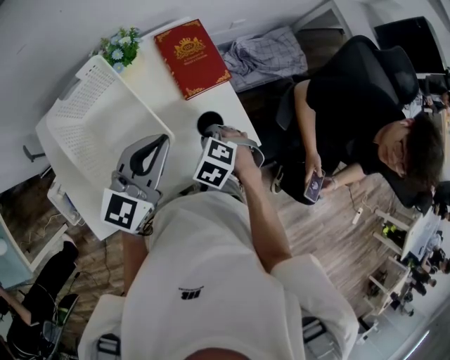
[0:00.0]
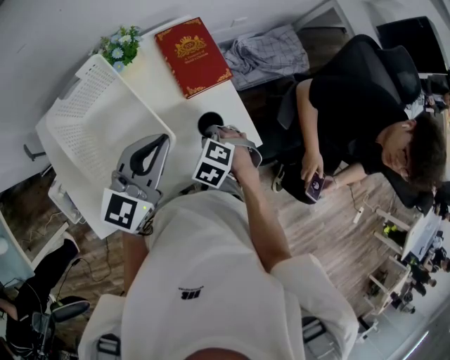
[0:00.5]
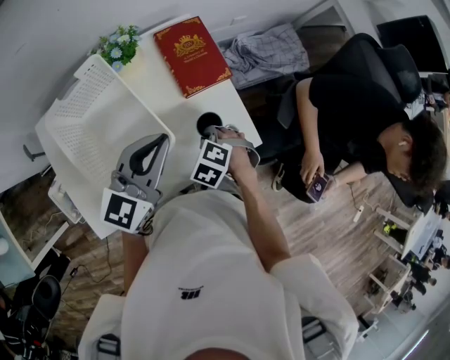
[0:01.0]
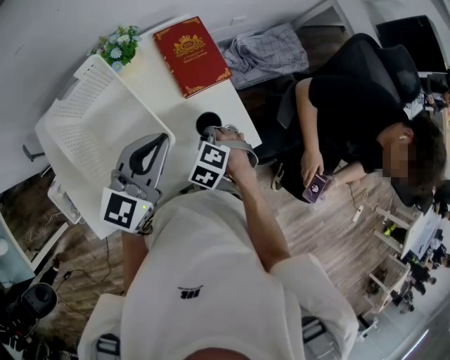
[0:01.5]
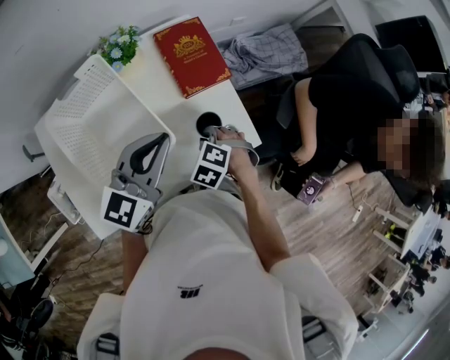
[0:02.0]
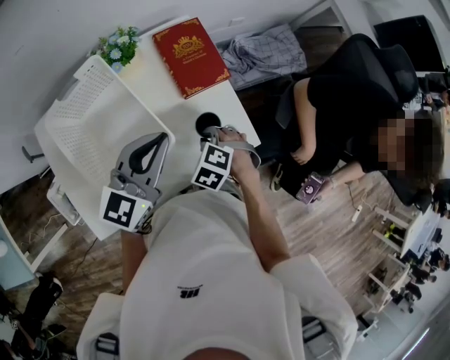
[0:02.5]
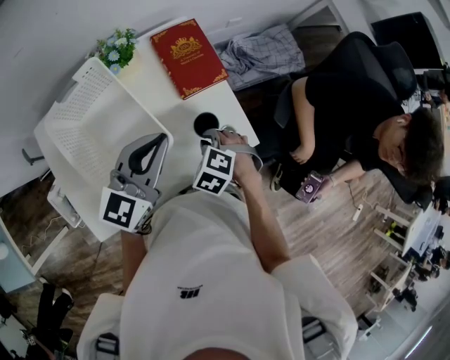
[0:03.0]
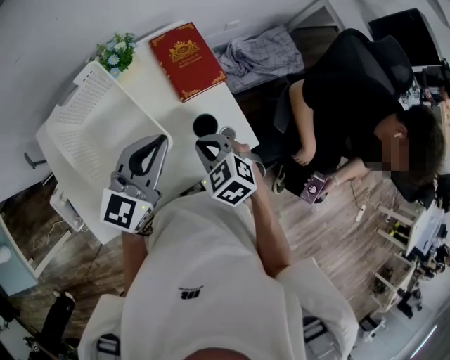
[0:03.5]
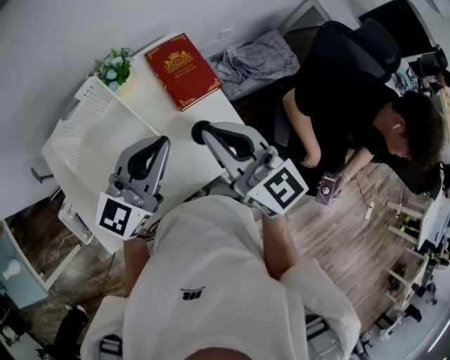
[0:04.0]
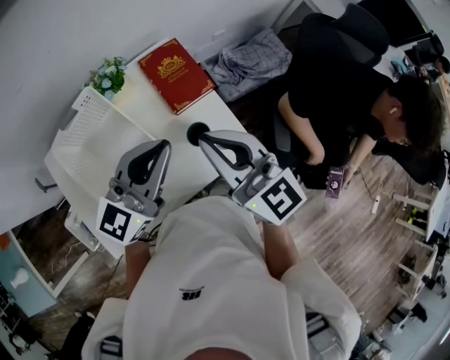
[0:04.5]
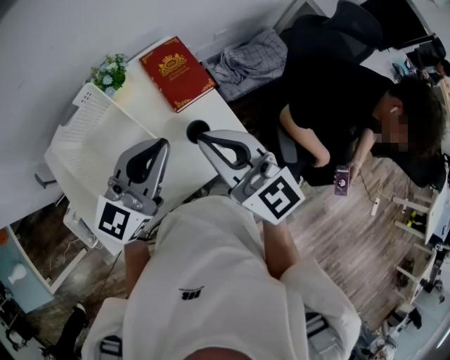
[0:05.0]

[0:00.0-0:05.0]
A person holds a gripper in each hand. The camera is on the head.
0:00.0 to 0:02.5: The grippers stay close to where they were, moving slightly.
0:02.5 to 0:05.0: The left gripper travels upward by about 10 cm; the right gripper is displaced upward by some 30 cm, and points its fingers approximately 70 degrees further upward.

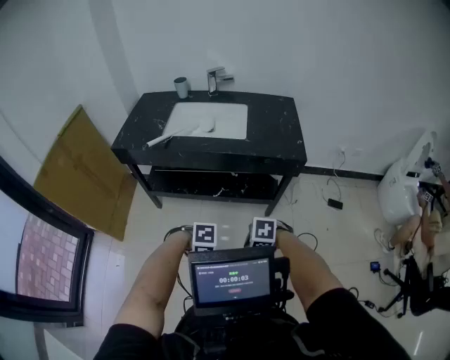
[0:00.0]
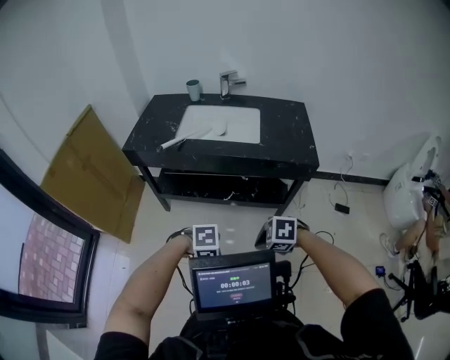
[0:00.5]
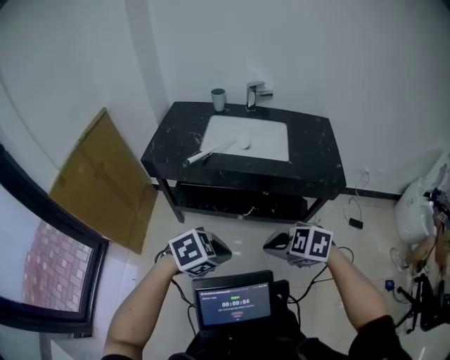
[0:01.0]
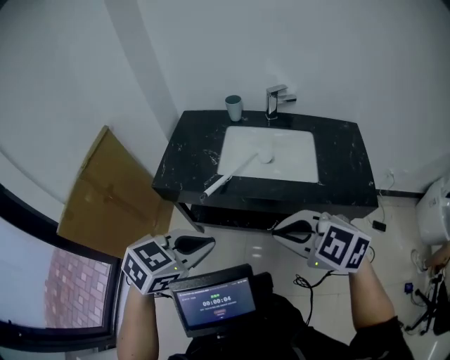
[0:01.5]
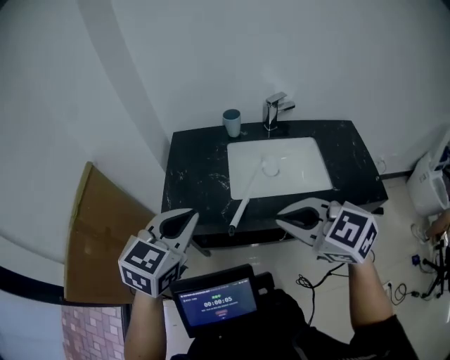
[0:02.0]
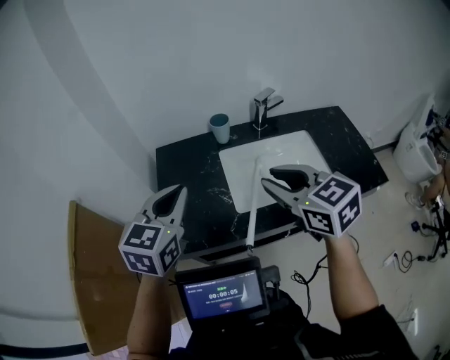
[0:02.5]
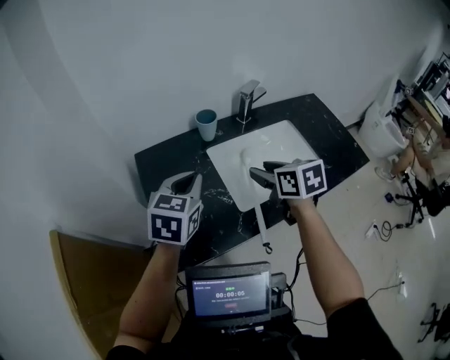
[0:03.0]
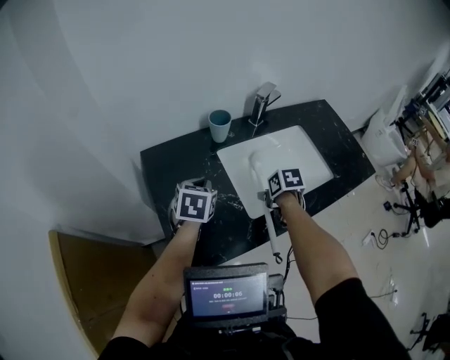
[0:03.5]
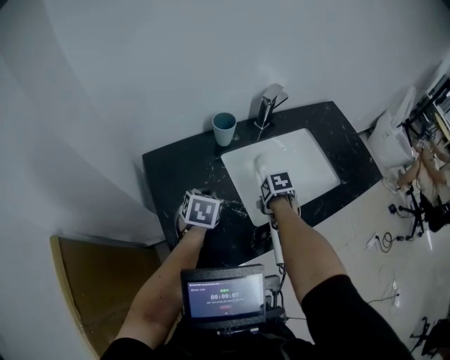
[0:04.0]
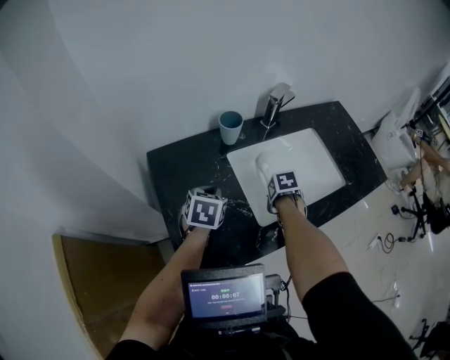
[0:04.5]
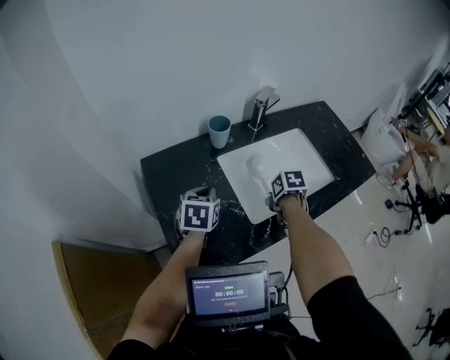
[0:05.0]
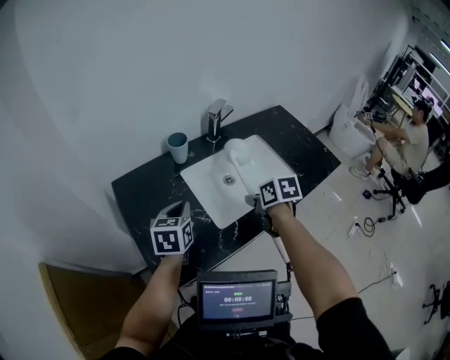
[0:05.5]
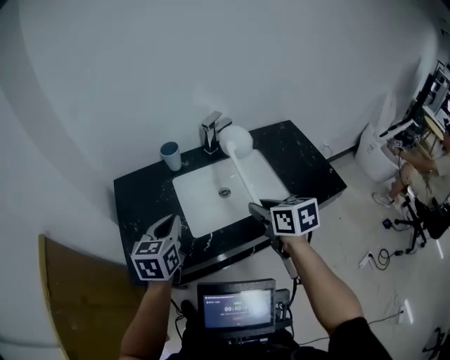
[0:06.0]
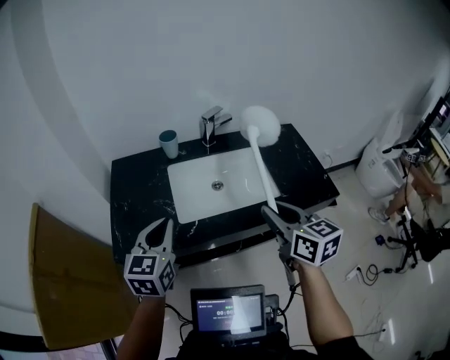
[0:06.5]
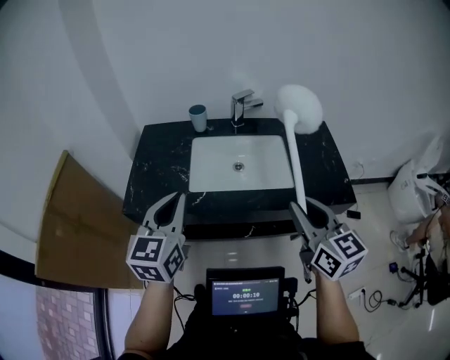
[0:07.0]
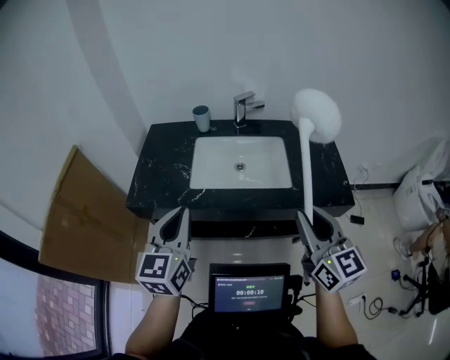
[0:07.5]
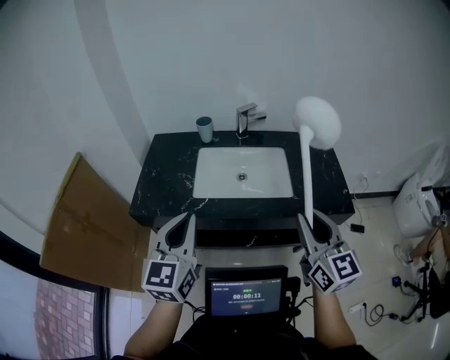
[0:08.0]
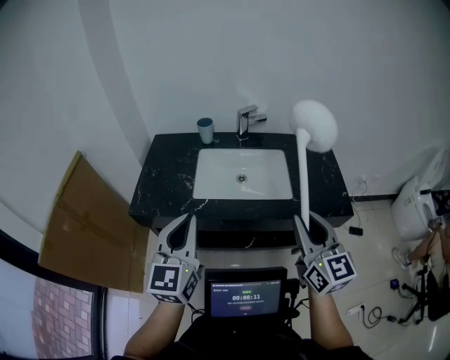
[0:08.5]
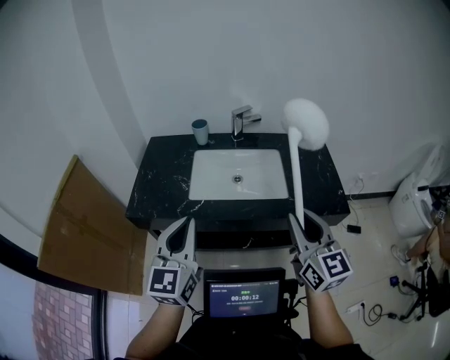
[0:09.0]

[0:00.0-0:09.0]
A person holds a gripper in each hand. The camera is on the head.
0:00.0 to 0:02.0: The pair of grippers is taken some 60 cm. The left gripper tips its fingers upward by approximately 40 degrees. The right gripper tilts its fingers approximately 40 degrees upward.
0:02.0 to 0:04.5: The left gripper ends up about 50 cm from where it was, and rotates some 20 degrees; the right gripper goes about 35 cm downward, points its fingers roughly 50 degrees further downward, and opens, then closes again.
0:04.5 to 0:07.0: The two grippers travel together, some 40 cm. The right gripper angles its fingers upward, by approximately 70 degrees, while the left gripper points its fingers some 40 degrees further upward.
0:07.0 to 0:09.0: The left gripper shifts roughly 10 cm backward. Meanwhile the right gripper ends up roughly 5 cm from where it was.

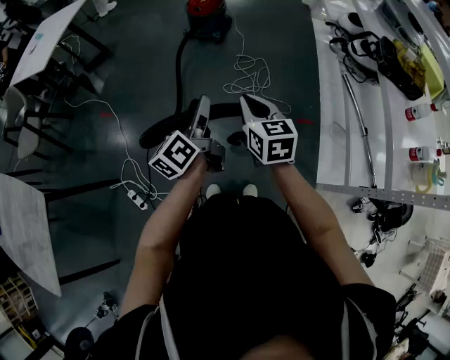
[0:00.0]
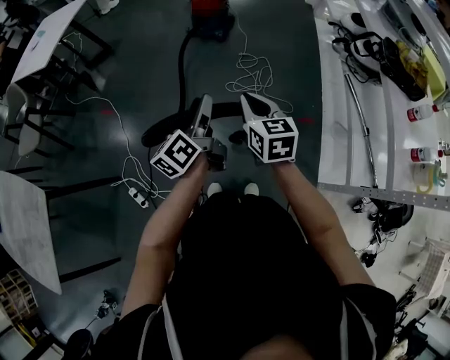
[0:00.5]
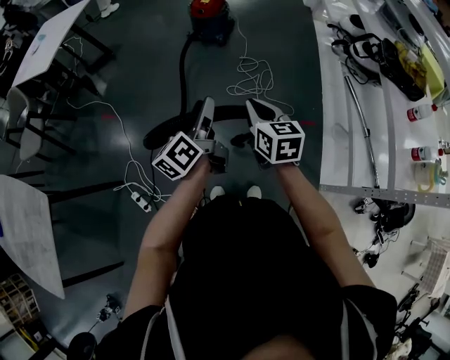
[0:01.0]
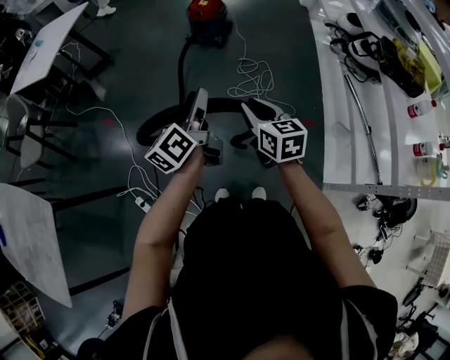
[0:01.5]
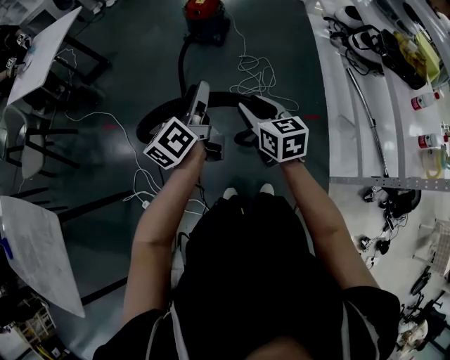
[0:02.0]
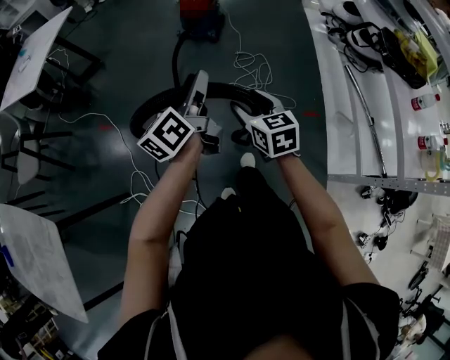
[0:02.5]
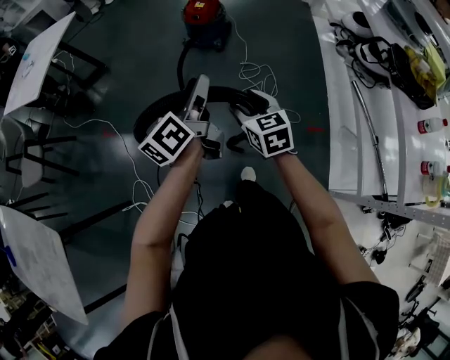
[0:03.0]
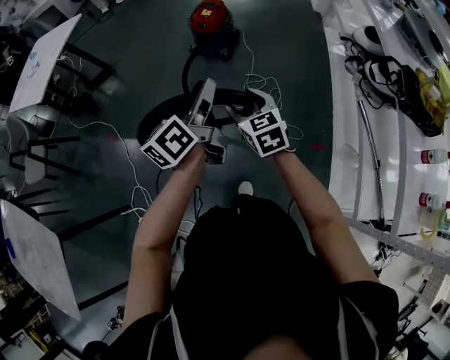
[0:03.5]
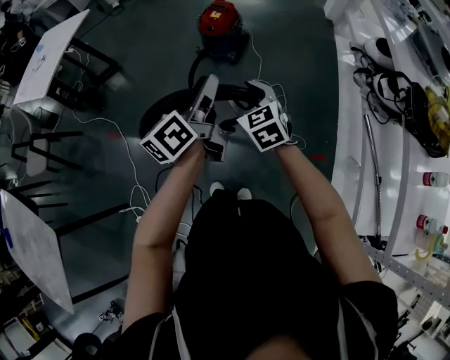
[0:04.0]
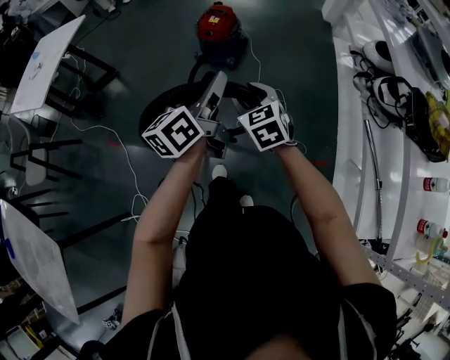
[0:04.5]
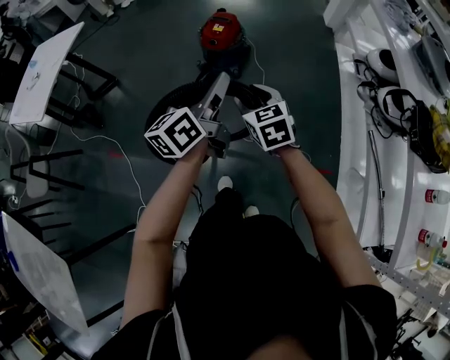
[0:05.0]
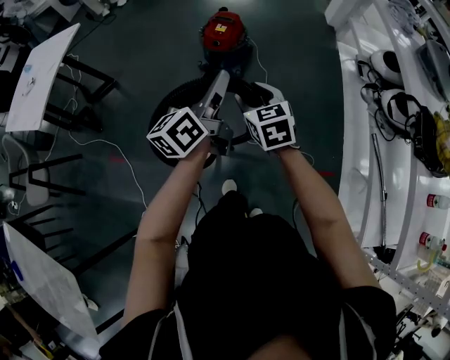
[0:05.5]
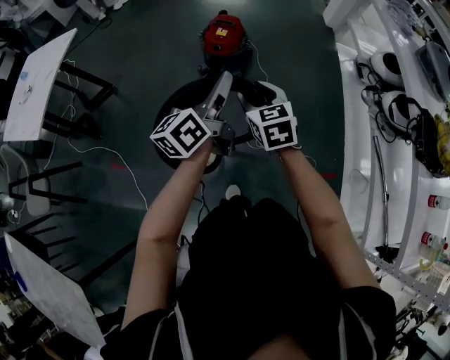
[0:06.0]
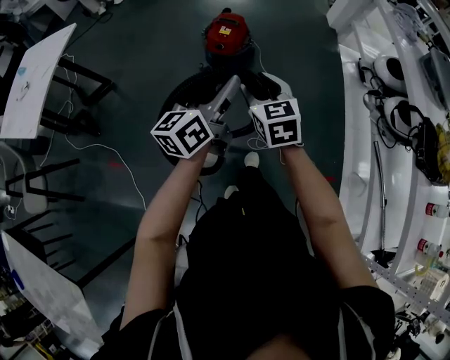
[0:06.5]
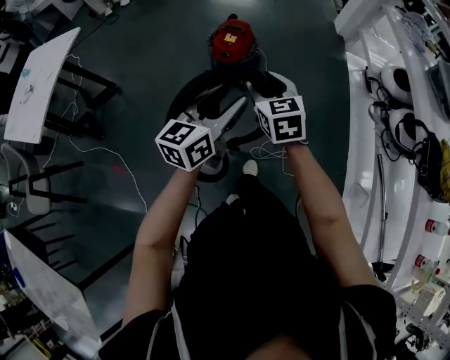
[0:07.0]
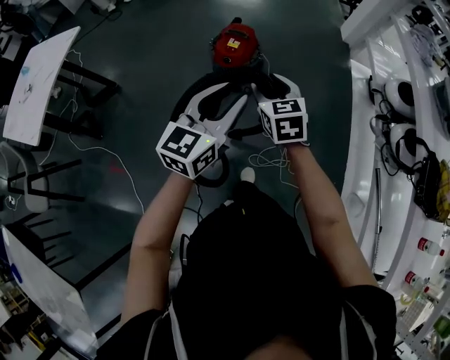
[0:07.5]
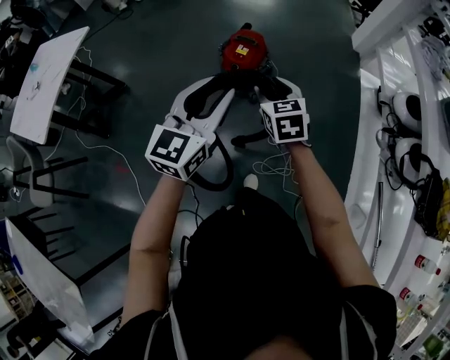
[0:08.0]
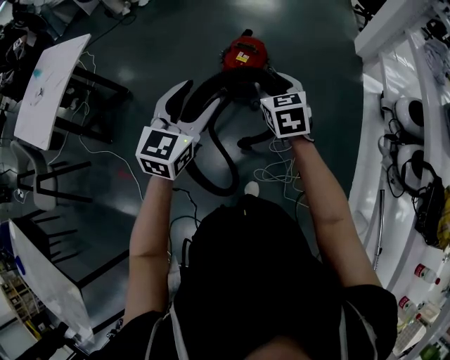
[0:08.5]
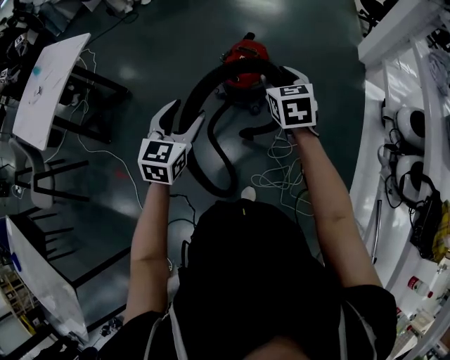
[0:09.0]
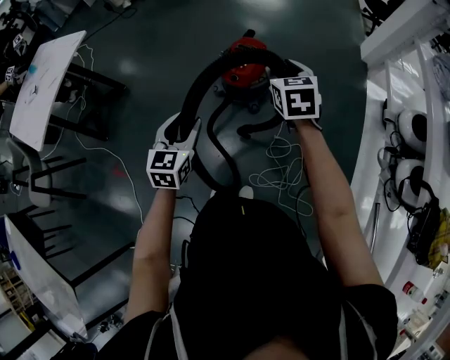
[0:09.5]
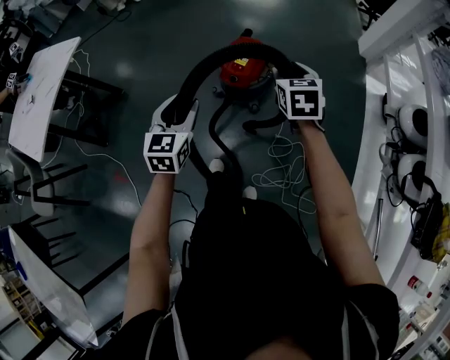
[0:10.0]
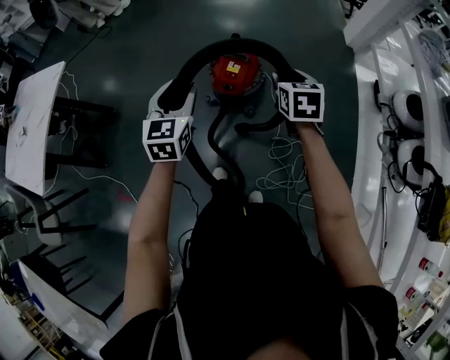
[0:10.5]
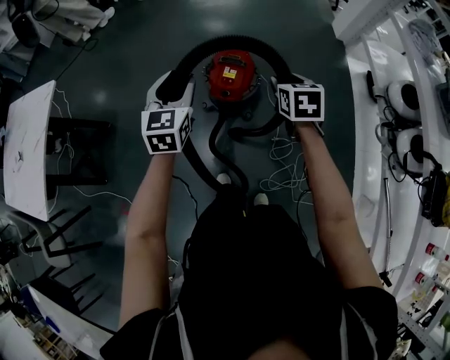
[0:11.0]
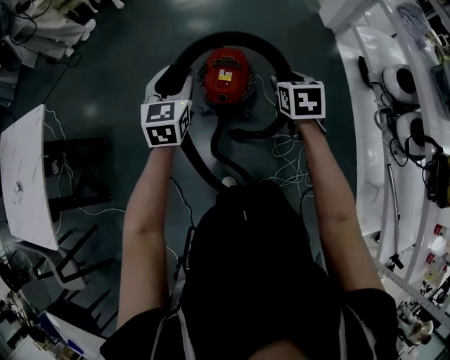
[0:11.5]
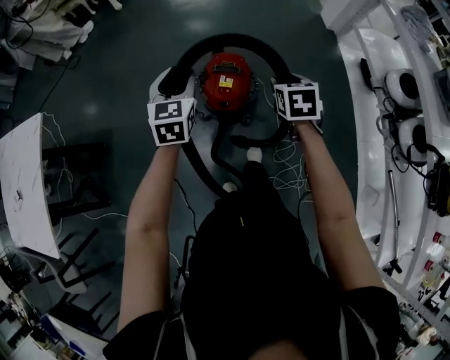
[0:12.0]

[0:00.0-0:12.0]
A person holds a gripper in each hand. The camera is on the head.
0:00.0 to 0:02.0: The right gripper shifts some 5 cm to the left, and opens. The left gripper travels to the left and forward by approximately 10 cm.
0:02.0 to 0:04.0: The left gripper heads forward and to the right, covering approximately 25 cm, while the right gripper goes approximately 30 cm forward, and rotates some 30 degrees.
0:04.0 to 0:06.0: The grippers both shift forward and to the left by about 25 cm.
0:06.0 to 0:08.0: The right gripper heads forward, covering approximately 20 cm, while the left gripper shifts about 15 cm forward, and rotates around the line of its fingers by some 40 degrees, clockwise from behind.
0:08.0 to 0:10.0: The right gripper shifts approximately 15 cm forward, while the left gripper is displaced downward, forward and to the left by some 20 cm, and turns by roughly 30 degrees.
0:10.0 to 0:12.0: The right gripper heads forward and downward, covering about 15 cm, and turns by approximately 20 degrees. The left gripper moves forward, approximately 25 cm.
